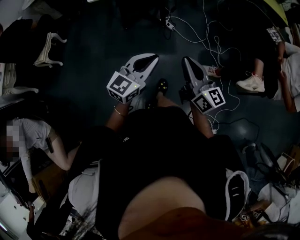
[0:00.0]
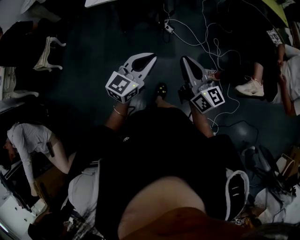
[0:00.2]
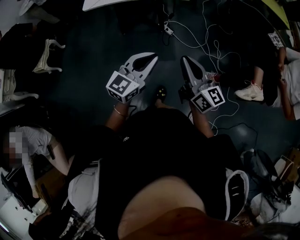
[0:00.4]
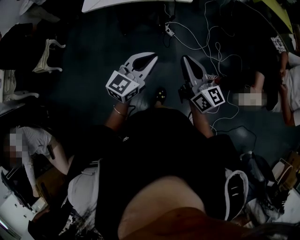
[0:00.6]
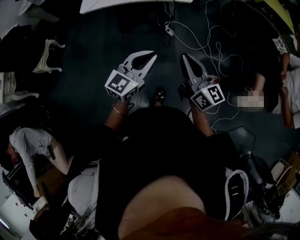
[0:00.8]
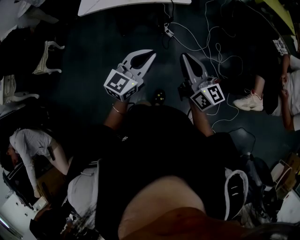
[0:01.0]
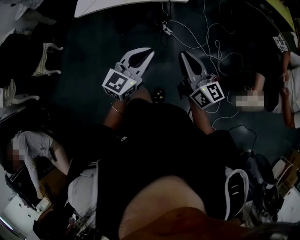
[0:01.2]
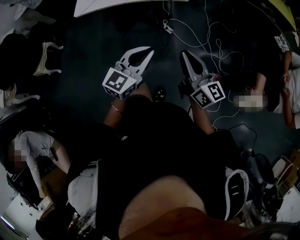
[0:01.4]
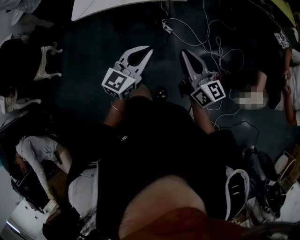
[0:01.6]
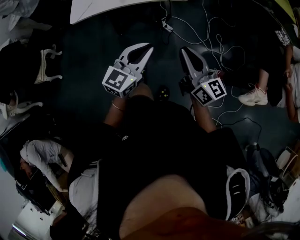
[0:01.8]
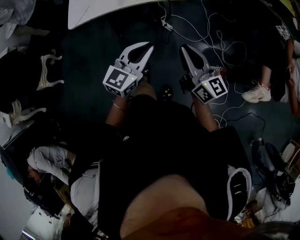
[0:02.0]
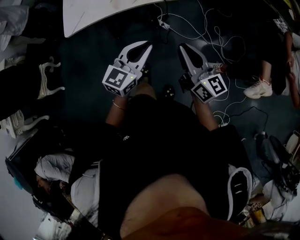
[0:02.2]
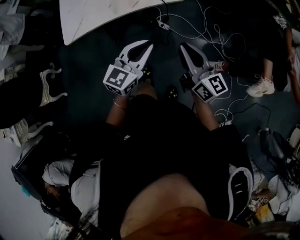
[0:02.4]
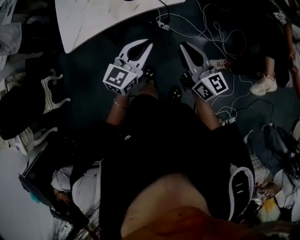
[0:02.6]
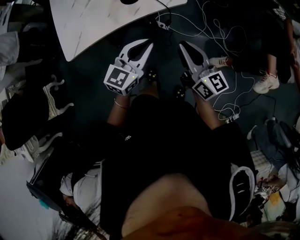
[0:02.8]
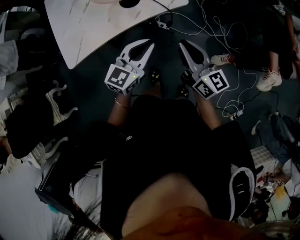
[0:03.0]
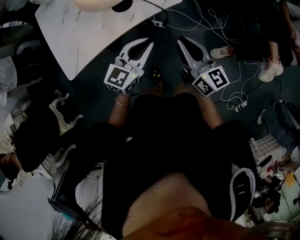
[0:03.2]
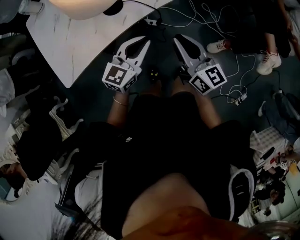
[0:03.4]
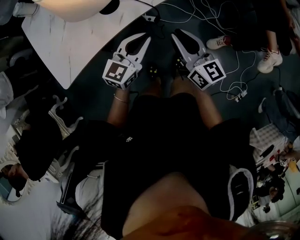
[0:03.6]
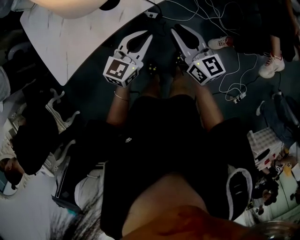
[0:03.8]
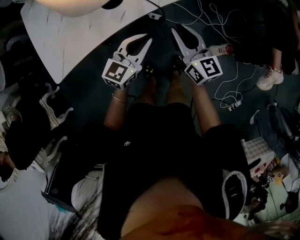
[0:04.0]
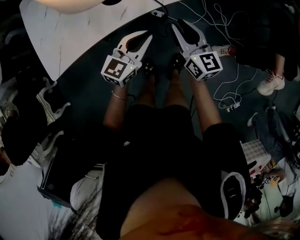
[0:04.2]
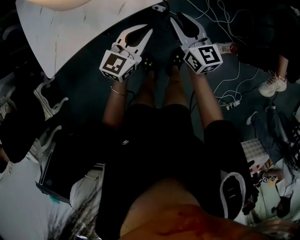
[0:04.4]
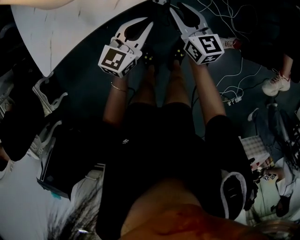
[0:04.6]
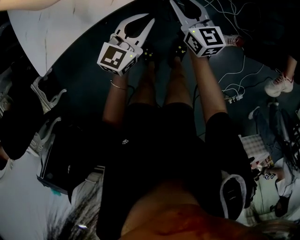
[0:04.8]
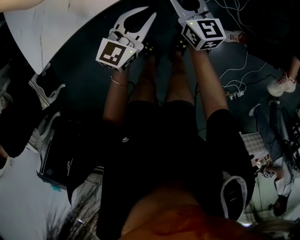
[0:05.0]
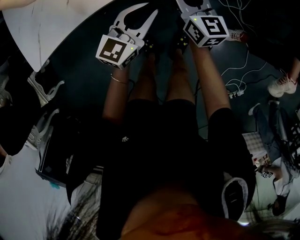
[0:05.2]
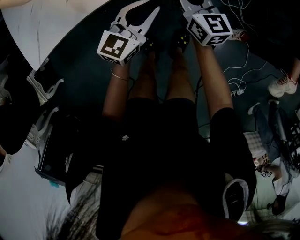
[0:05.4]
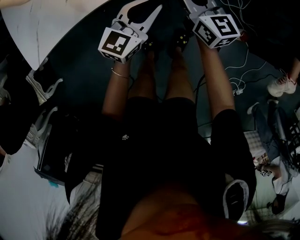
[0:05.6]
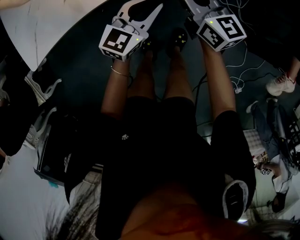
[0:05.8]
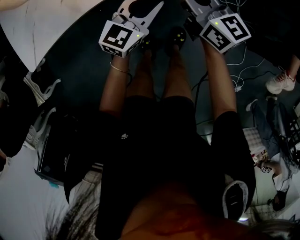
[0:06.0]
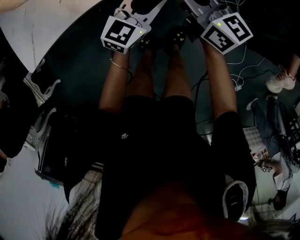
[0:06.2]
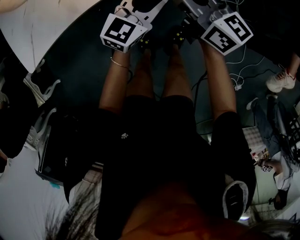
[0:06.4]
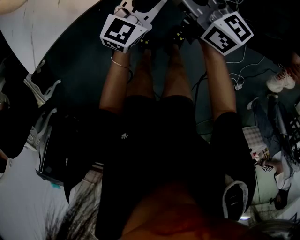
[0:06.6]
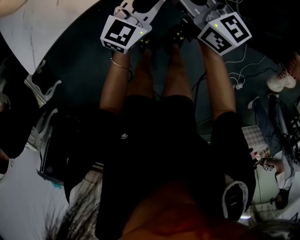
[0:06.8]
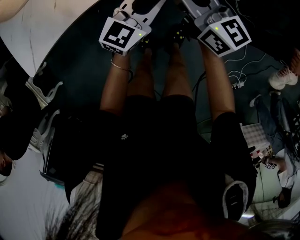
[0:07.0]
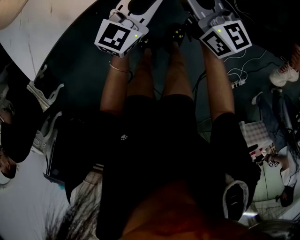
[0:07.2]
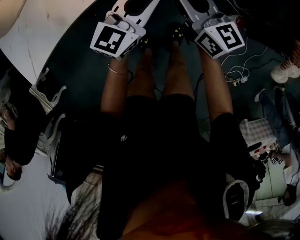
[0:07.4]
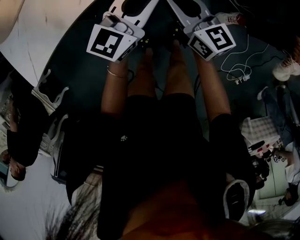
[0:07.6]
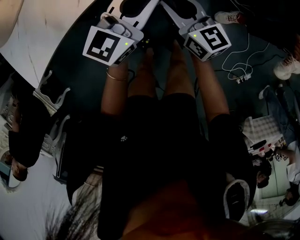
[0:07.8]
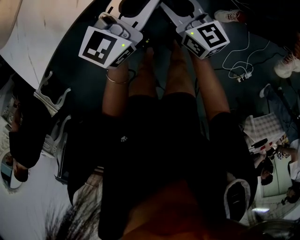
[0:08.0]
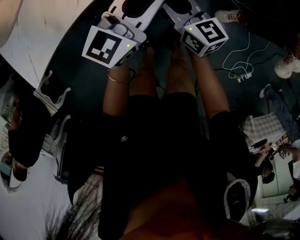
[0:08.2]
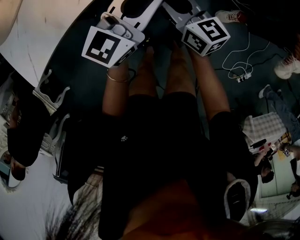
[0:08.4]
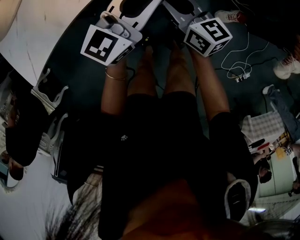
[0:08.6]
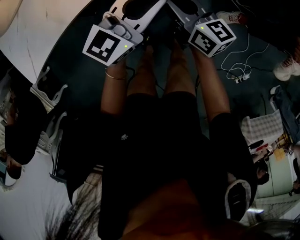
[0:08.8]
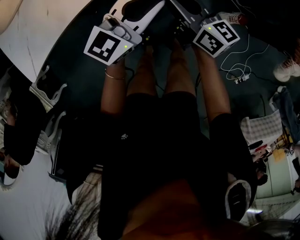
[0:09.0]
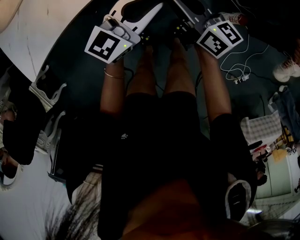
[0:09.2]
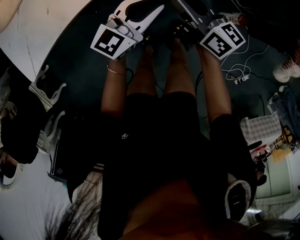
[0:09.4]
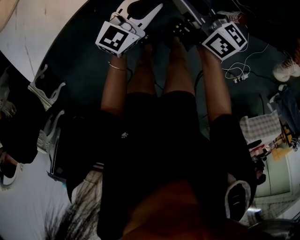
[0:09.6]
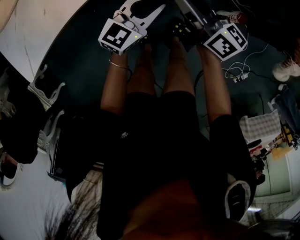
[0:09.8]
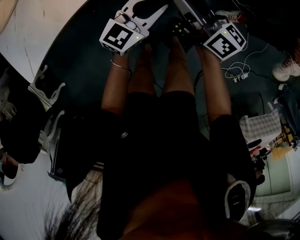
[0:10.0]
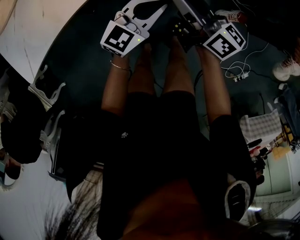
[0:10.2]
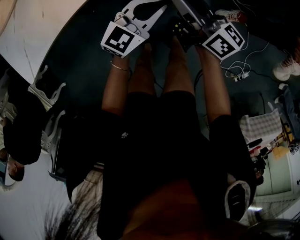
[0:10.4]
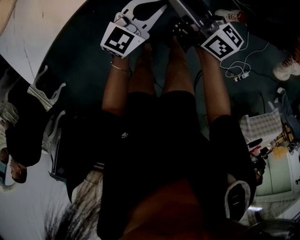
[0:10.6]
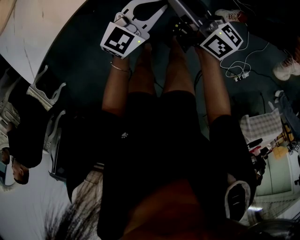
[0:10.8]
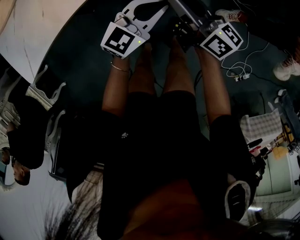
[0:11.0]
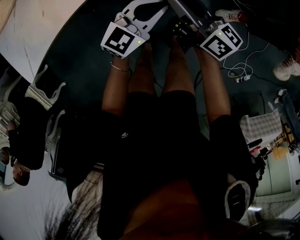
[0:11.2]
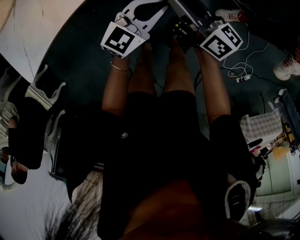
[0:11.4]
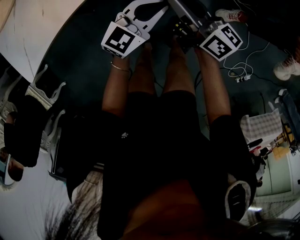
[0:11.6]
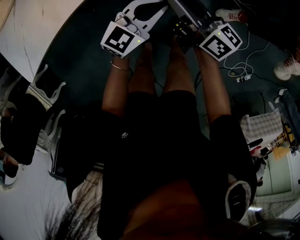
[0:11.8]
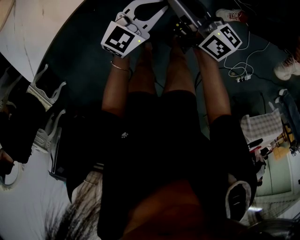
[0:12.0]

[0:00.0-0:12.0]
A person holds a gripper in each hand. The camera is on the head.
0:00.0 to 0:01.6: Both grippers travel together forward, roughly 20 cm.
0:01.6 to 0:03.0: The grippers both shift forward and to the left by roughly 20 cm. The left gripper rotates some 20 degrees.
0:03.0 to 0:04.4: The two grippers go approximately 15 cm downward and forward.
0:04.4 to 0:06.0: The left gripper heads downward, covering some 5 cm.
0:06.0 to 0:07.6: The right gripper moves some 5 cm. The left gripper heads upward and to the right, covering roughly 10 cm.
0:07.6 to 0:09.0: The grippers move only a little.
0:09.0 to 0:10.4: The left gripper moves downward, roughly 5 cm.
0:10.4 to 0:12.0: There are only small adjustments of the grippers.

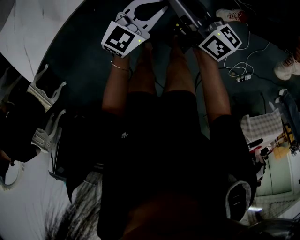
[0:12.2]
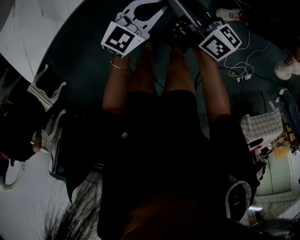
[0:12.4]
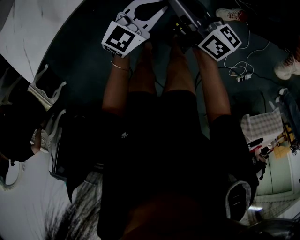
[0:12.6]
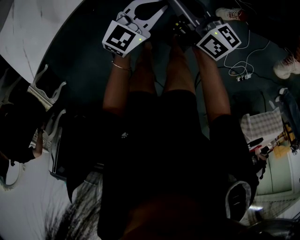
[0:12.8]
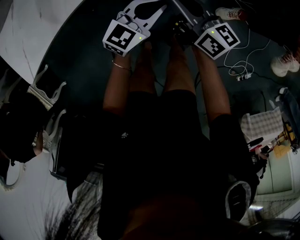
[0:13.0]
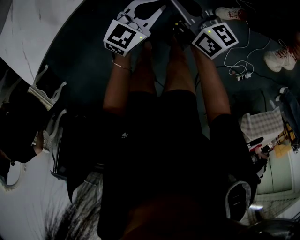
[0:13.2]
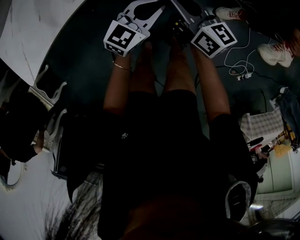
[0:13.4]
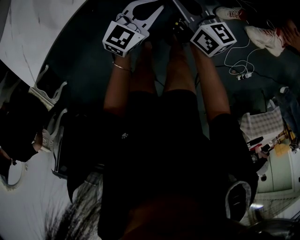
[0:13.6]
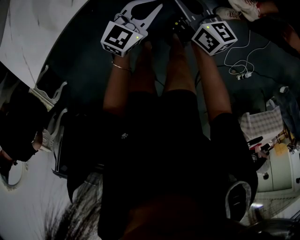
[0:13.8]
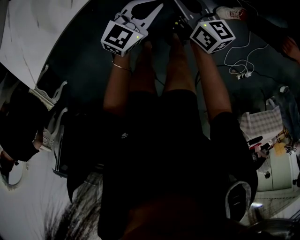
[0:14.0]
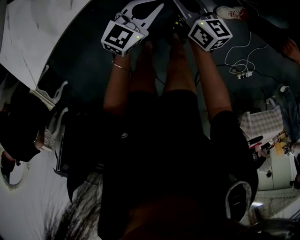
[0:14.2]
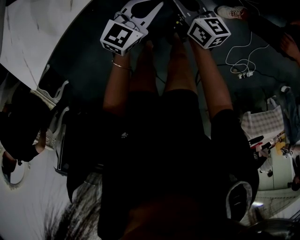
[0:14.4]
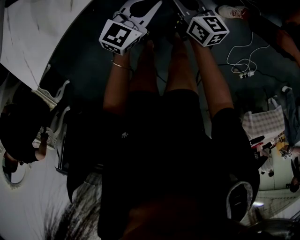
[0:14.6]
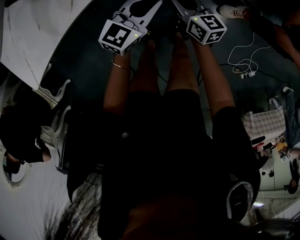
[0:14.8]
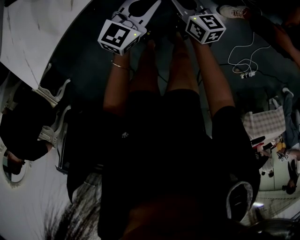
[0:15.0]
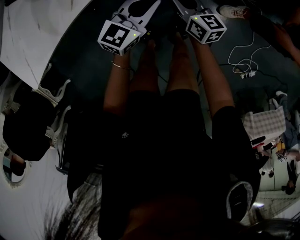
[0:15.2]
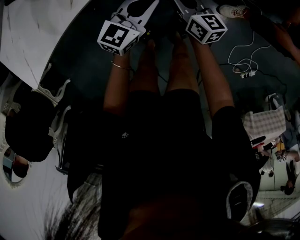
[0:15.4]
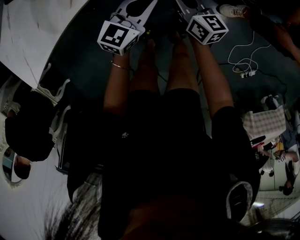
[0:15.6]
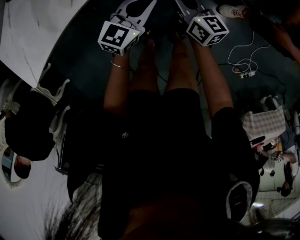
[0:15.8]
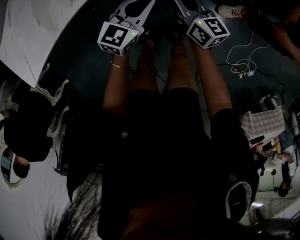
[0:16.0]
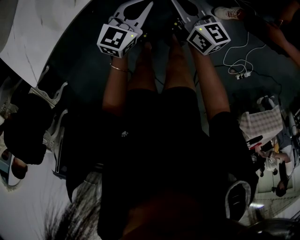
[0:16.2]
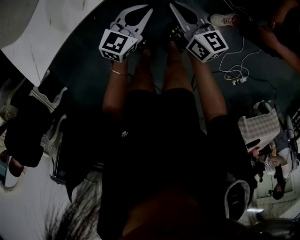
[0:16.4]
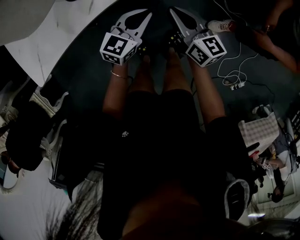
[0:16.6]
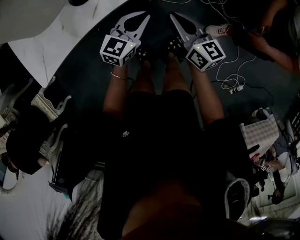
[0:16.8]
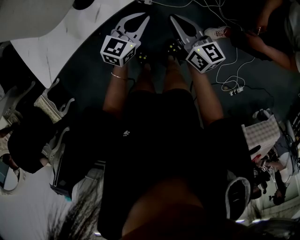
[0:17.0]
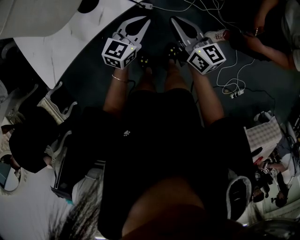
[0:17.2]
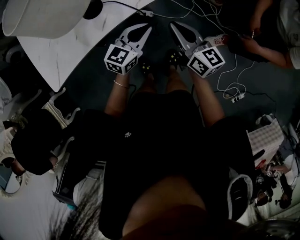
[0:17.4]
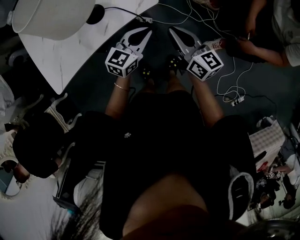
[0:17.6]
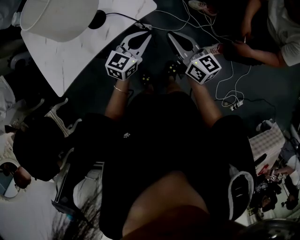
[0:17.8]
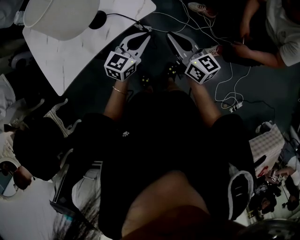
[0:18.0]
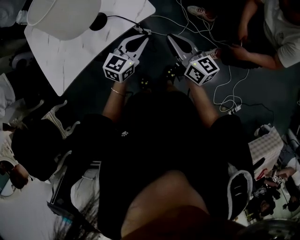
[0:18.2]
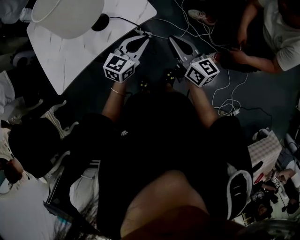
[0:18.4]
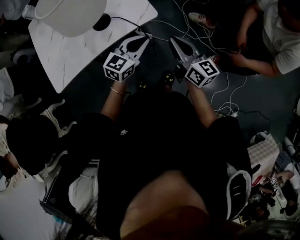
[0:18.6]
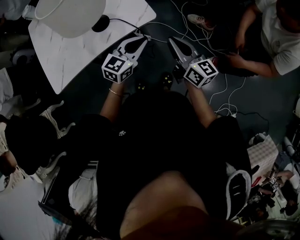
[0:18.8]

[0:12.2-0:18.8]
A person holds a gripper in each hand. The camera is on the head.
0:12.2 to 0:13.8: The right gripper goes approximately 5 cm downward.
0:13.8 to 0:15.4: The right gripper heads downward, covering roughly 5 cm.
0:15.4 to 0:17.2: The left gripper goes about 10 cm upward, while the right gripper is displaced upward by some 20 cm.
0:17.2 to 0:18.8: Both grippers move upward, approximately 10 cm.

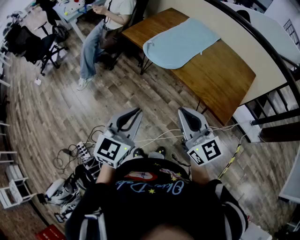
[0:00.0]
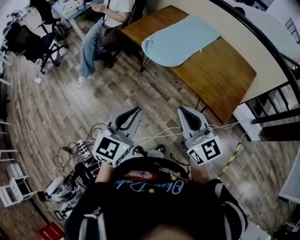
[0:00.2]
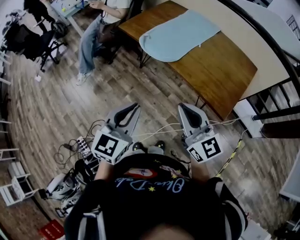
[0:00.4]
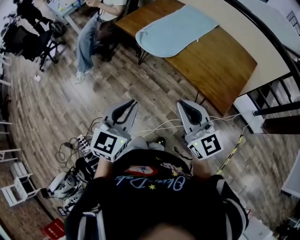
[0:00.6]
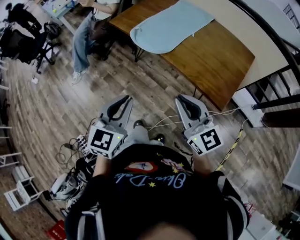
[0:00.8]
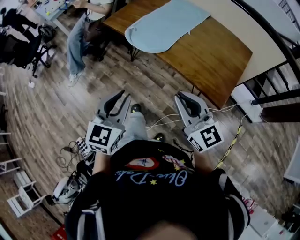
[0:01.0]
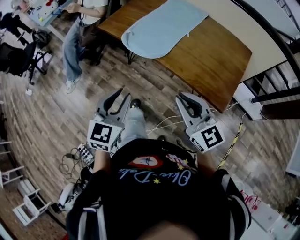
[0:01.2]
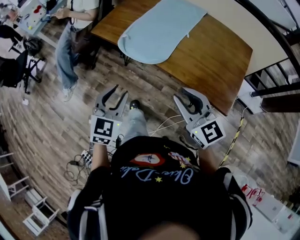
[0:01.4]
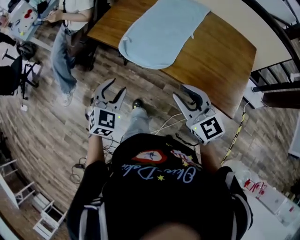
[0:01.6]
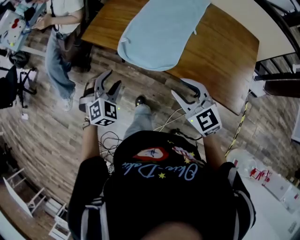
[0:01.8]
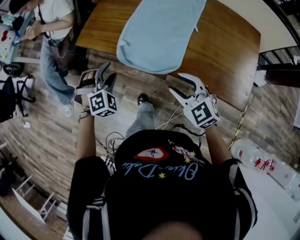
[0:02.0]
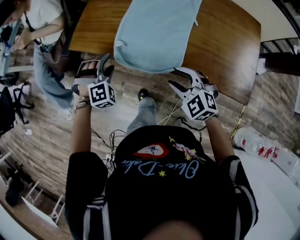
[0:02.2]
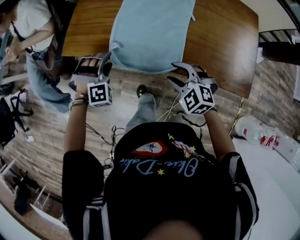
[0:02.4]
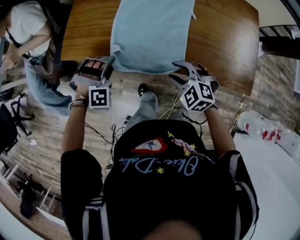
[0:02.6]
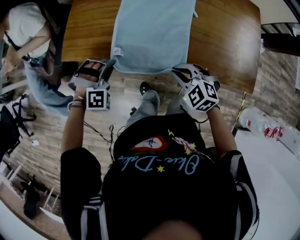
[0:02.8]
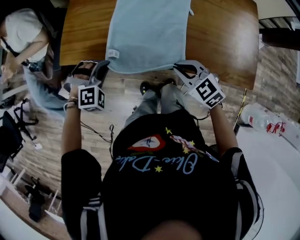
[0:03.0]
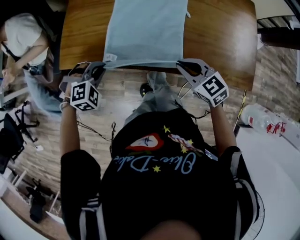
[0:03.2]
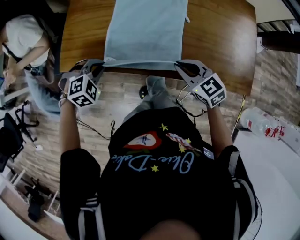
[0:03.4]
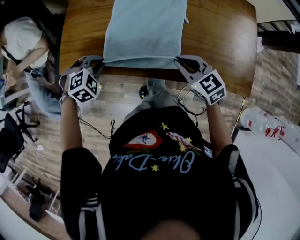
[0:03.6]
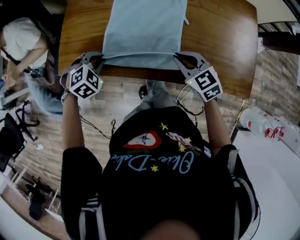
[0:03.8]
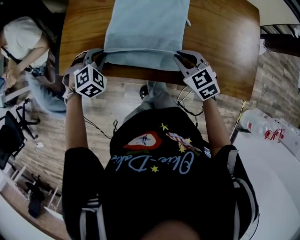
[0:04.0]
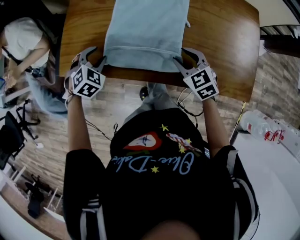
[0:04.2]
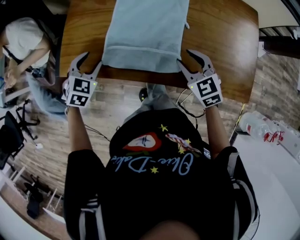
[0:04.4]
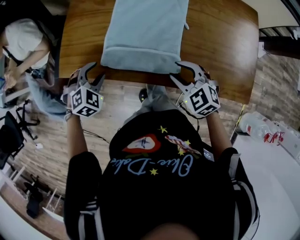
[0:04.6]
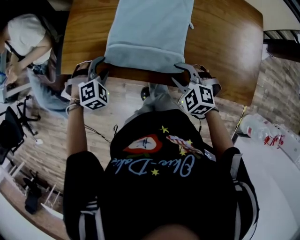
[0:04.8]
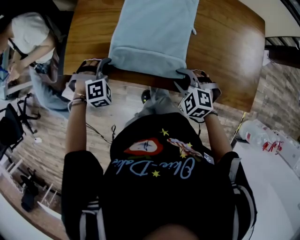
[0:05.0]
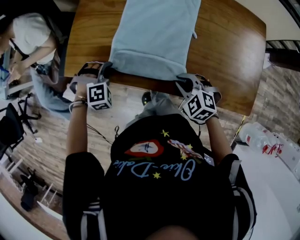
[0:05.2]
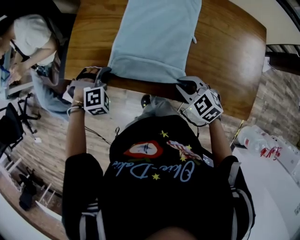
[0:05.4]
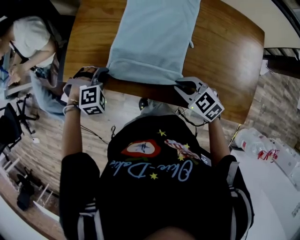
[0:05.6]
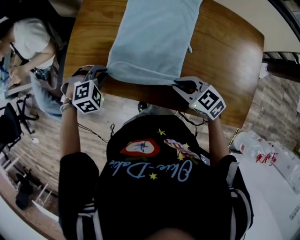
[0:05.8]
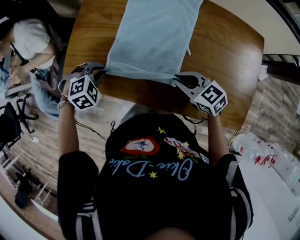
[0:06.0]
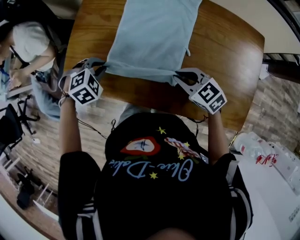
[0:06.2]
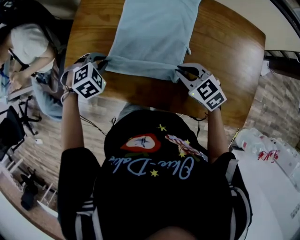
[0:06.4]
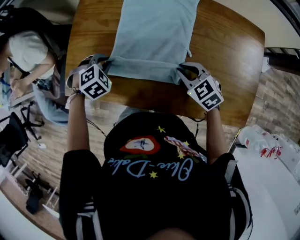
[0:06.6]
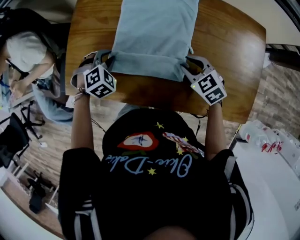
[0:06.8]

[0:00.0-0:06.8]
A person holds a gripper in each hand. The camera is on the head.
0:00.0 to 0:01.4: The left gripper shifts approximately 20 cm forward and downward, changes its angle by approximately 20 degrees, and opens its fingers. The right gripper travels forward and downward by approximately 15 cm.
0:01.4 to 0:02.8: The right gripper heads downward and forward, covering approximately 25 cm, tilts its fingers about 40 degrees downward, and opens, then closes once more. The left gripper moves forward and downward, about 30 cm, twists approximately 80 degrees clockwise, seen from behind, and closes up.
0:02.8 to 0:04.0: The right gripper heads forward and to the right, covering roughly 10 cm, and rotates some 30 degrees. Meanwhile the left gripper travels forward by about 10 cm, and turns by some 30 degrees.
0:04.0 to 0:05.4: The right gripper opens and closes again; the left gripper opens, then closes again.
0:05.4 to 0:06.8: Both grippers travel together forward and to the right, some 15 cm.
